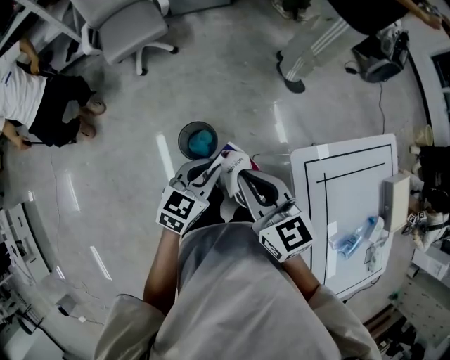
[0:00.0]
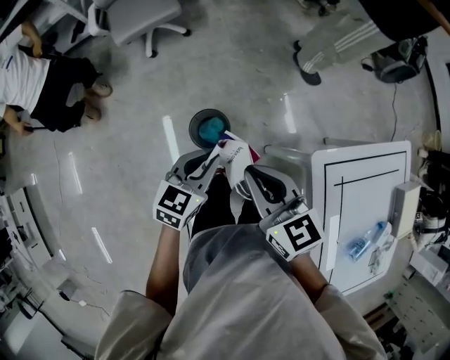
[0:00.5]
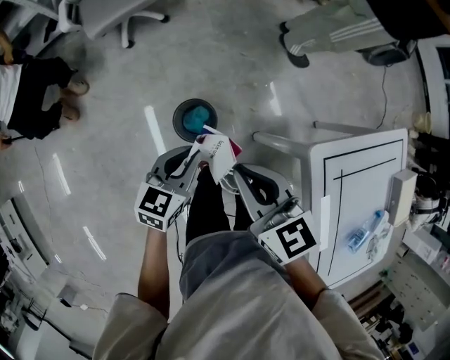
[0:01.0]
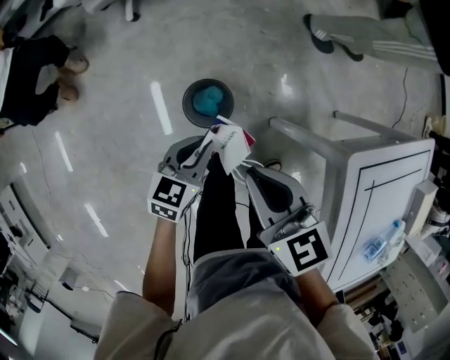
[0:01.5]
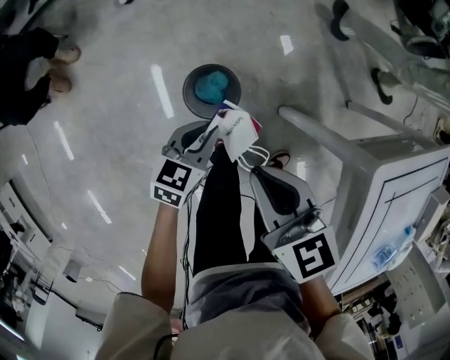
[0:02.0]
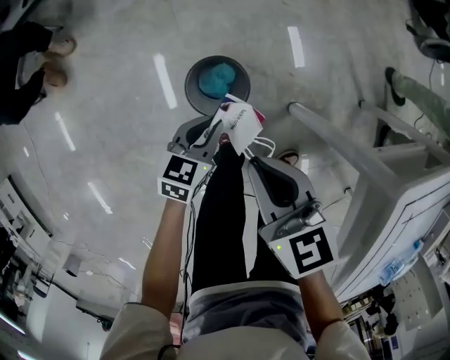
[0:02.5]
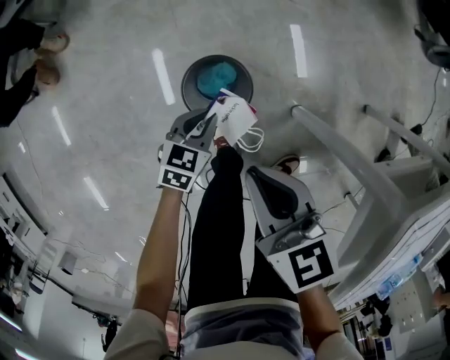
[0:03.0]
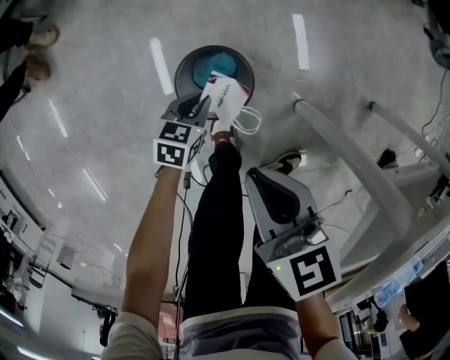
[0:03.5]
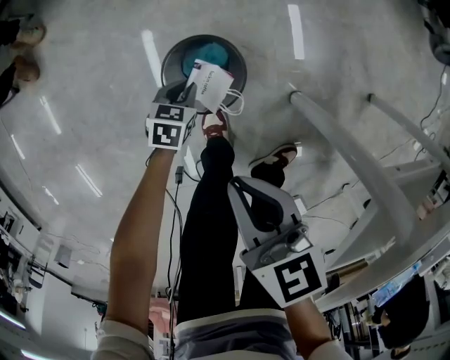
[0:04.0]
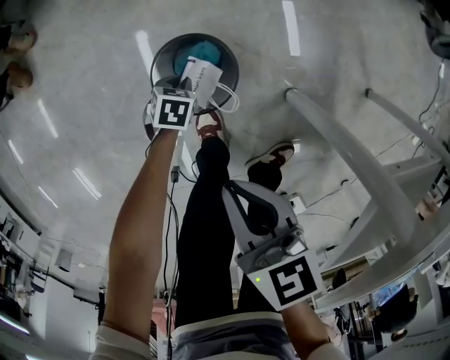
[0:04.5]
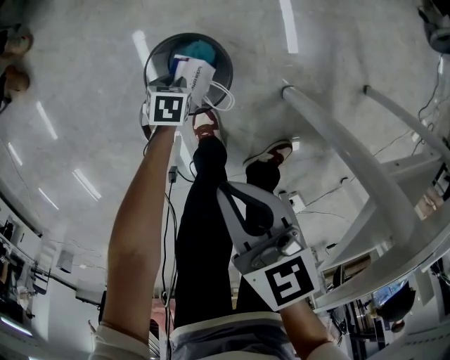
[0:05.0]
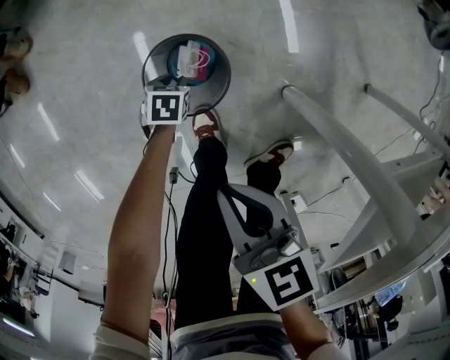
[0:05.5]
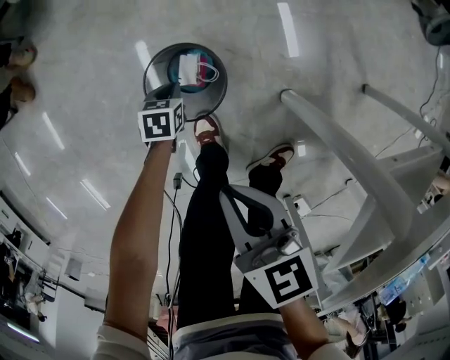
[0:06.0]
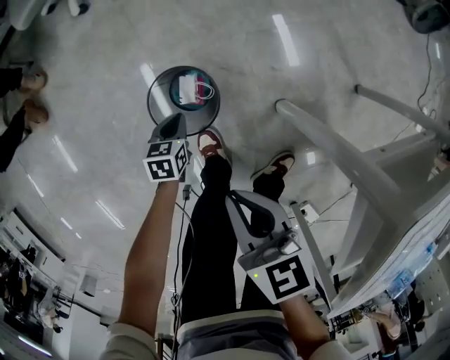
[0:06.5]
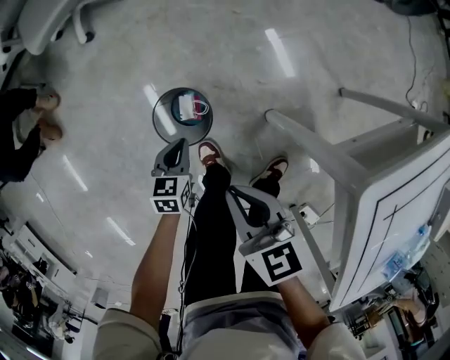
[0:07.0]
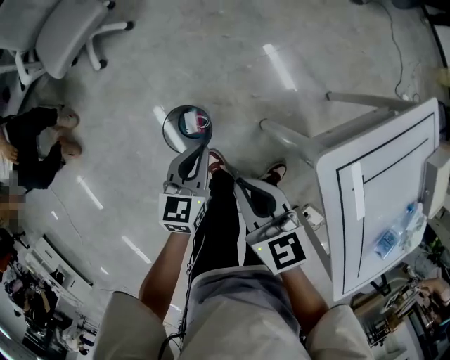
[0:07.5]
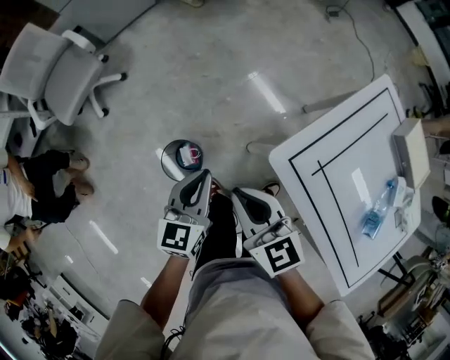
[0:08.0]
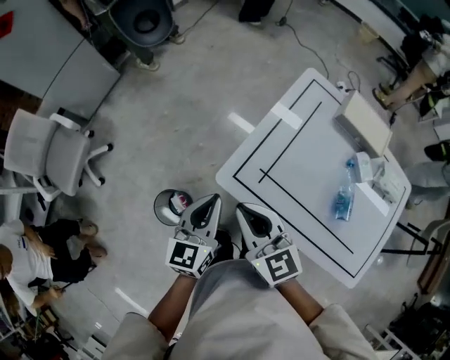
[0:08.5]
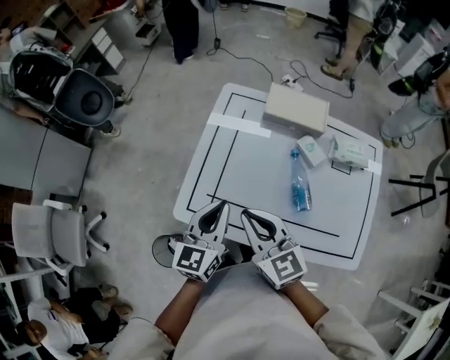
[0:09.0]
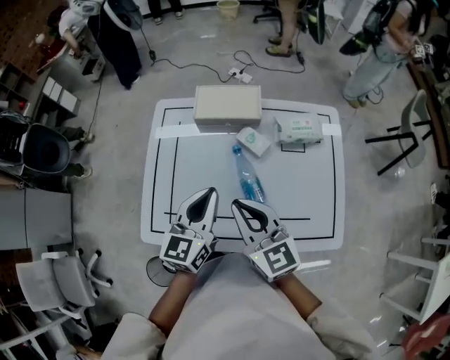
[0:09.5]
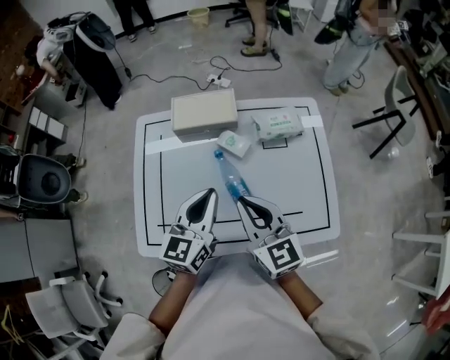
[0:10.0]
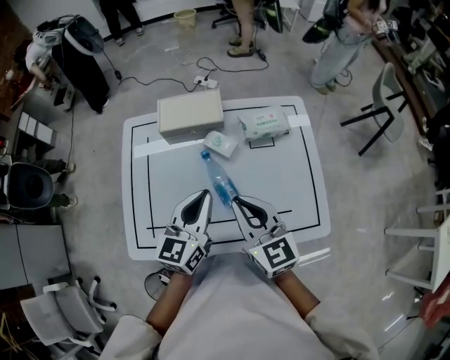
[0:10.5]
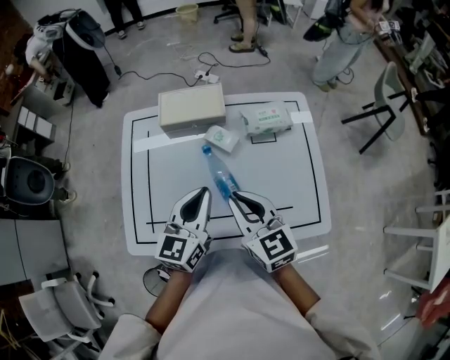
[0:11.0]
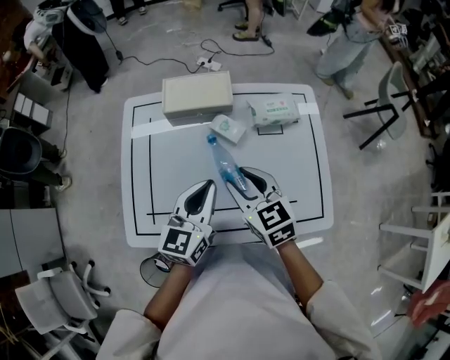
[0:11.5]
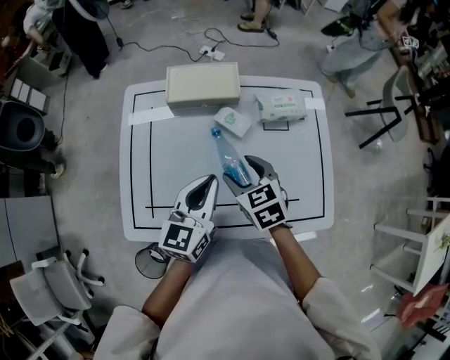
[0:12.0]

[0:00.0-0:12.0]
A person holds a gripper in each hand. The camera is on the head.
0.0 to 2.0 s: Both grippers move downward and to the left, approximately 25 cm.
2.0 to 4.0 s: The right gripper moves downward, some 20 cm. Meanwhile the left gripper moves downward, roughly 35 cm, and changes its angle by some 20 degrees.
4.0 to 6.0 s: The grippers make only small movements.
6.0 to 8.0 s: The right gripper shifts approximately 35 cm upward and to the right, and swivels about 30 degrees; the left gripper travels upward by roughly 60 cm, and tilts its fingers some 40 degrees upward.
8.0 to 10.0 s: The pair of grippers is taken approximately 50 cm. The right gripper swivels approximately 60 degrees, while the left gripper swivels approximately 60 degrees.
10.0 to 12.0 s: The right gripper heads downward and forward, covering approximately 15 cm, tilts its fingers approximately 30 degrees downward, and opens its fingers.

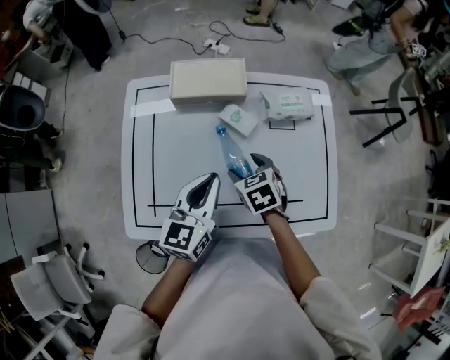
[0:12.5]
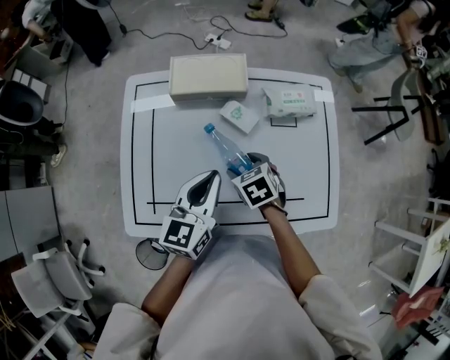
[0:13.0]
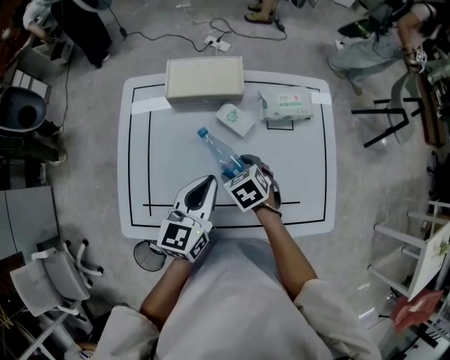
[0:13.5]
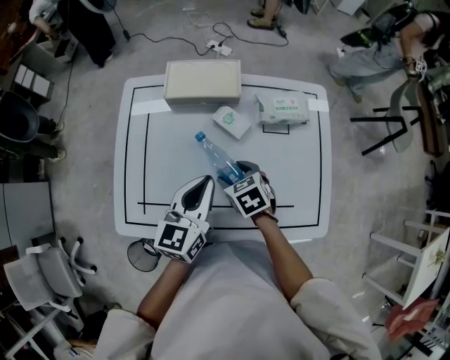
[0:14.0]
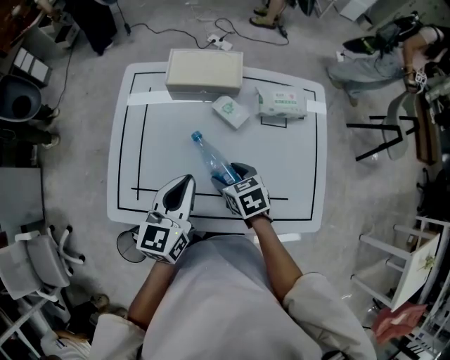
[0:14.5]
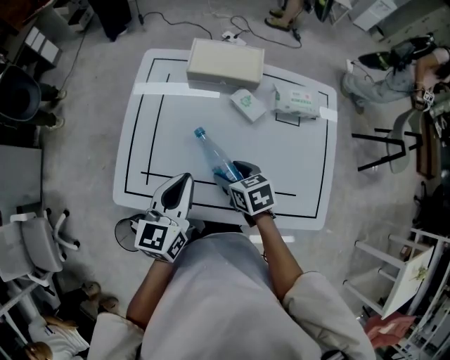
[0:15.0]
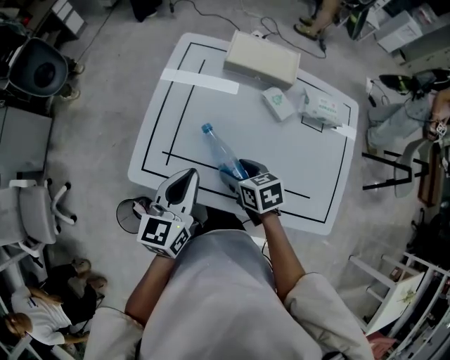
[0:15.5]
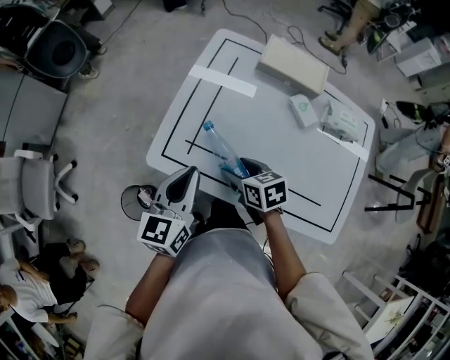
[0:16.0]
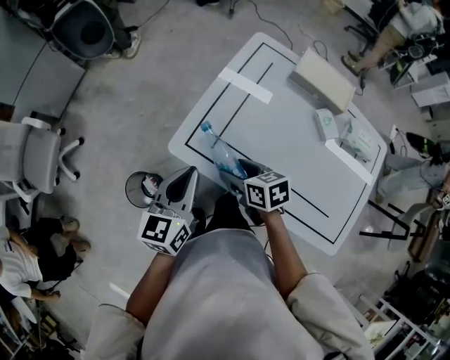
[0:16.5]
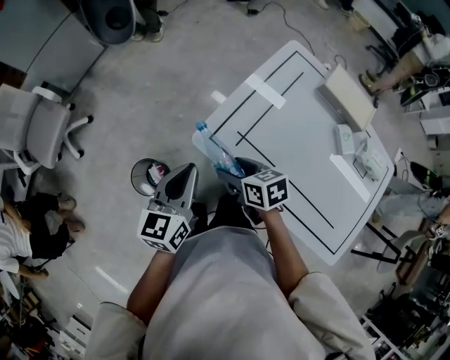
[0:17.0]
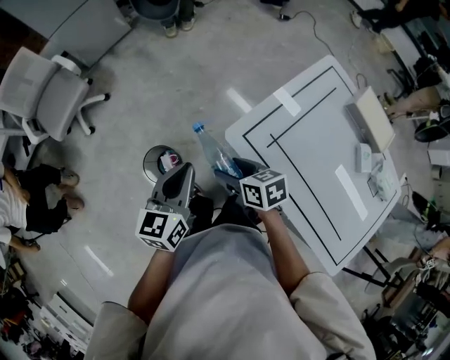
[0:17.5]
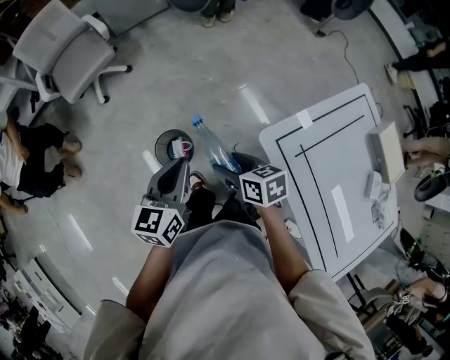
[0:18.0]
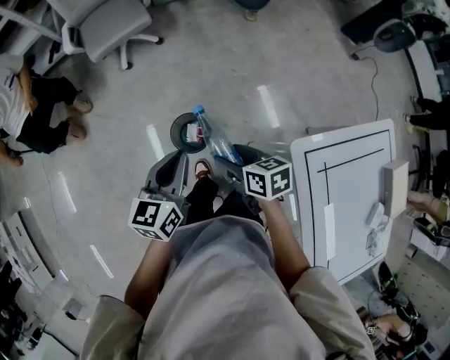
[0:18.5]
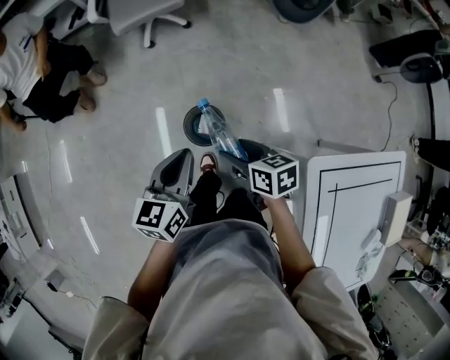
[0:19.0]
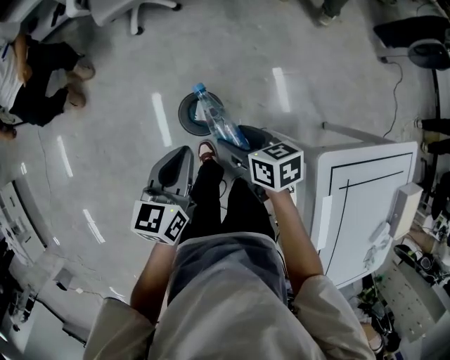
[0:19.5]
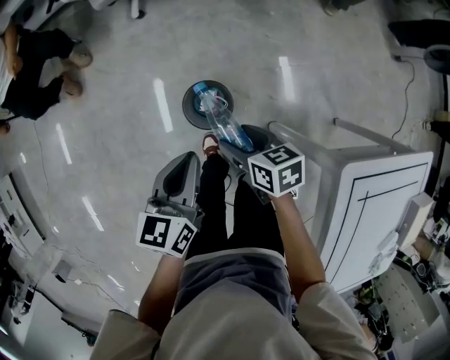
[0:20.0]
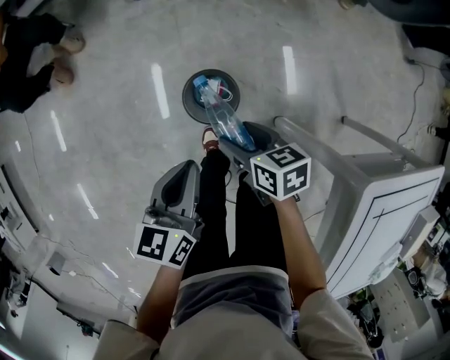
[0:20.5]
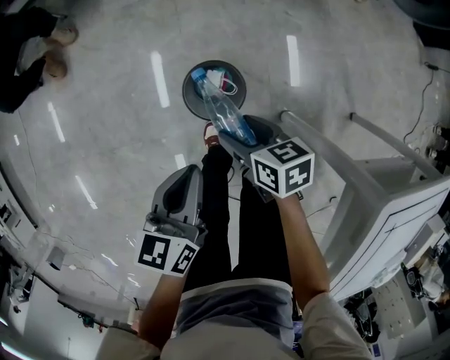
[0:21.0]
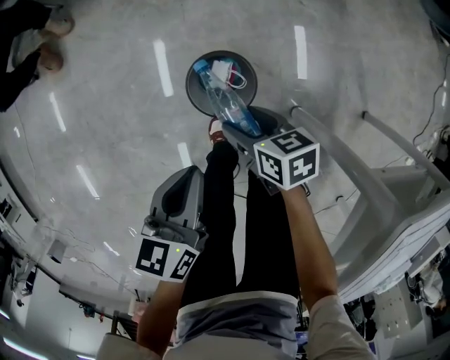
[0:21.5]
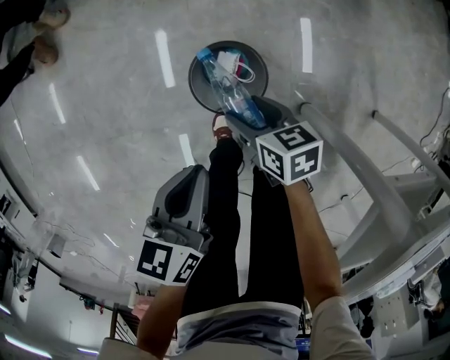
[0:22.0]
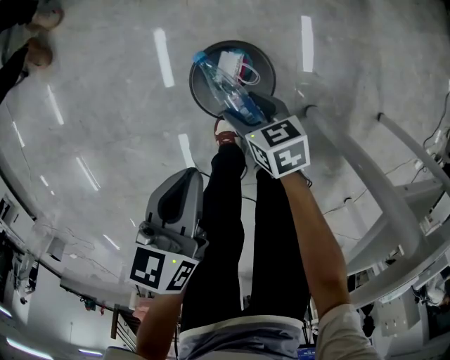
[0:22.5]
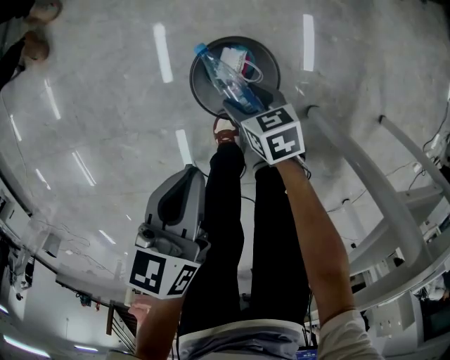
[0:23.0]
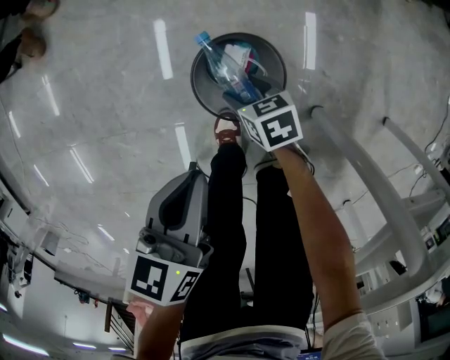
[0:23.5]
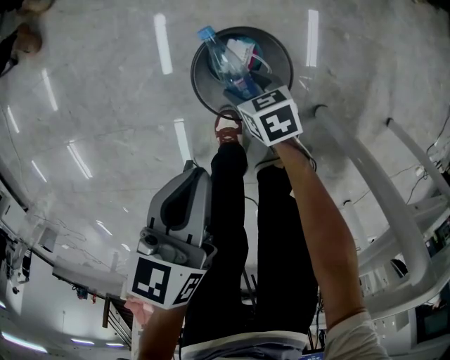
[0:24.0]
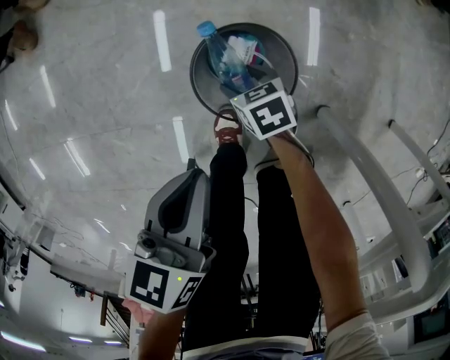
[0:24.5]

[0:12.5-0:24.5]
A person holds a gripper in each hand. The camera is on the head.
12.5 to 14.5 s: The right gripper changes place by approximately 5 cm.
14.5 to 16.5 s: The left gripper moves roughly 25 cm, and swivels approximately 30 degrees, while the right gripper shifts by roughly 25 cm, and swivels some 30 degrees.
16.5 to 18.5 s: The left gripper ends up approximately 35 cm from where it was, and turns by some 50 degrees. The right gripper changes place by about 35 cm, and swivels some 40 degrees.
18.5 to 20.5 s: The grippers both shift downward by roughly 20 cm.
20.5 to 22.5 s: The two grippers go approximately 20 cm downward.
22.5 to 24.5 s: The right gripper travels downward by some 15 cm; the left gripper moves downward, approximately 5 cm.

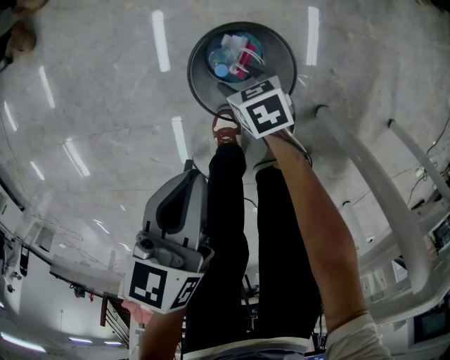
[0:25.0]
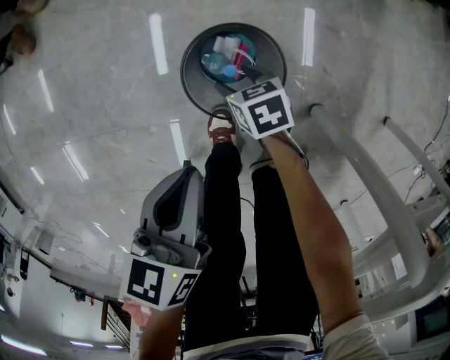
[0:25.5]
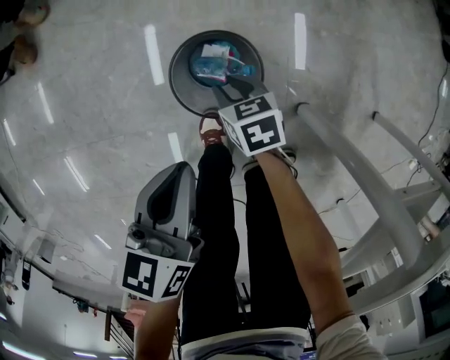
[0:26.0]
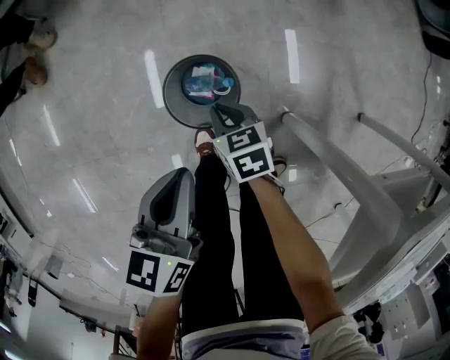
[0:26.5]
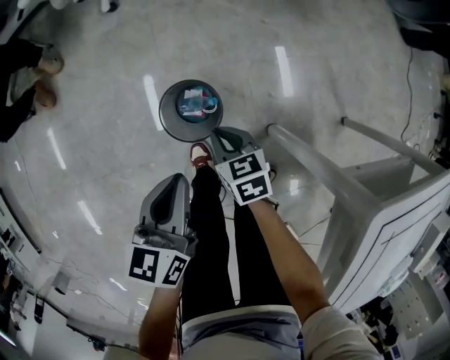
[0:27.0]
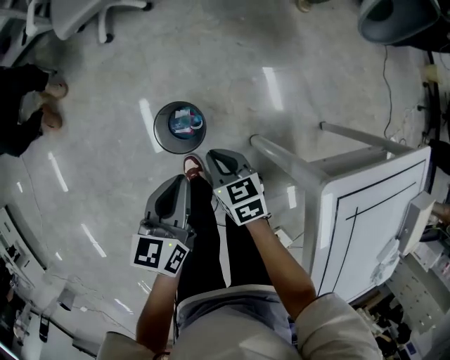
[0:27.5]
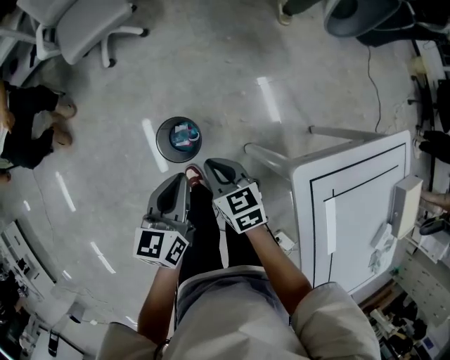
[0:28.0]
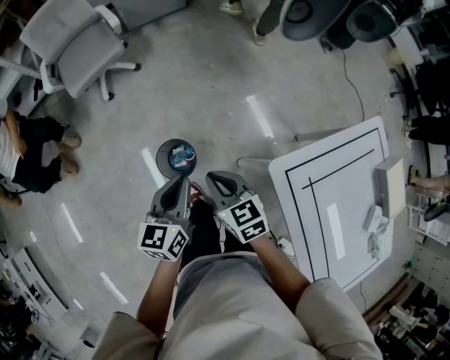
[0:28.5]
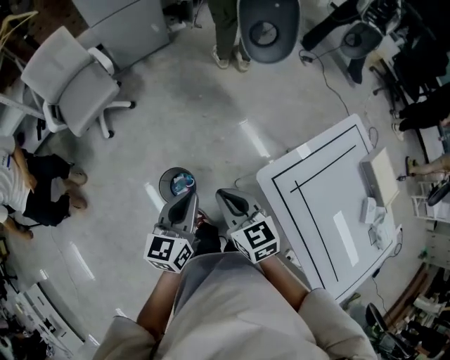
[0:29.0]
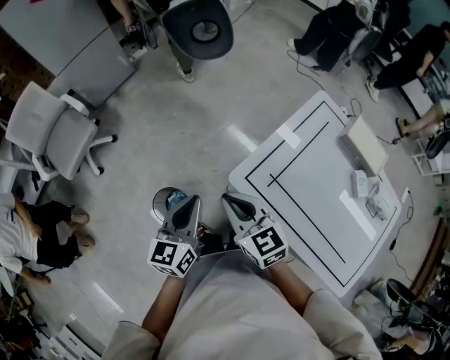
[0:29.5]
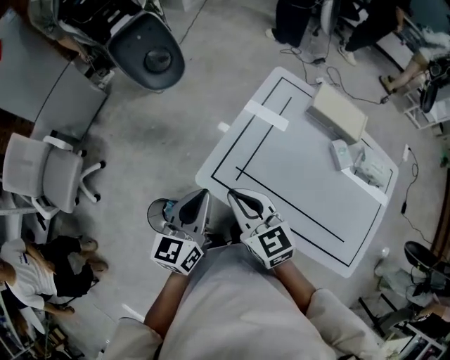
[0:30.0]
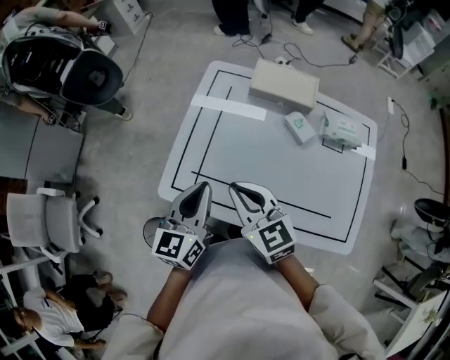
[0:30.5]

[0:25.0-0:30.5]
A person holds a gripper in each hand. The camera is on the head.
25.0 to 27.0 s: The right gripper travels upward by approximately 25 cm, swivels some 20 degrees, and closes its fingers. The left gripper is displaced upward and to the right by some 20 cm.
27.0 to 28.5 s: The right gripper travels upward by roughly 35 cm, and rotates about 20 degrees. The left gripper travels upward and to the right by approximately 25 cm.
28.5 to 30.5 s: The two grippers travel together, approximately 40 cm. The right gripper swivels some 50 degrees, while the left gripper changes its angle by some 50 degrees.
